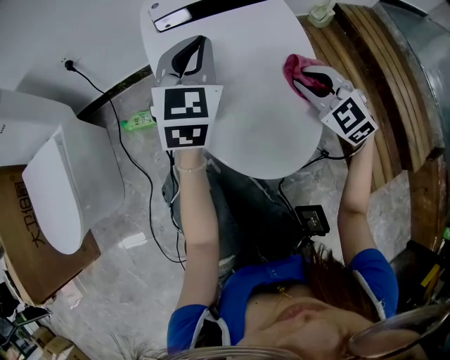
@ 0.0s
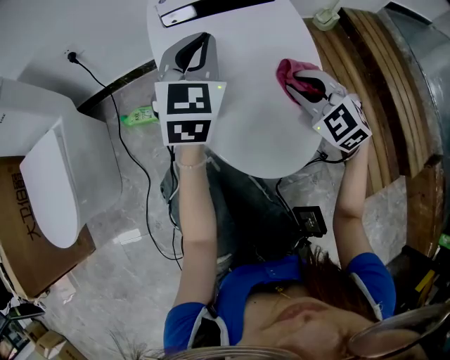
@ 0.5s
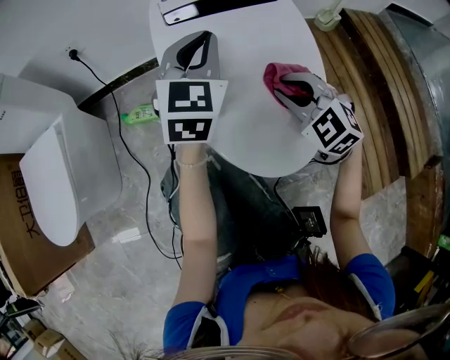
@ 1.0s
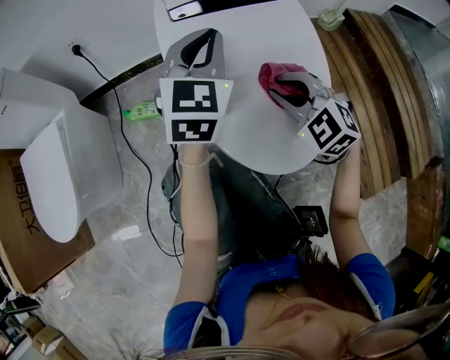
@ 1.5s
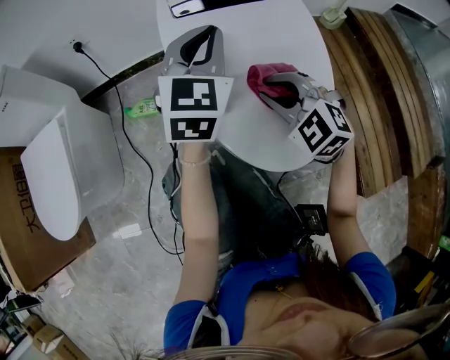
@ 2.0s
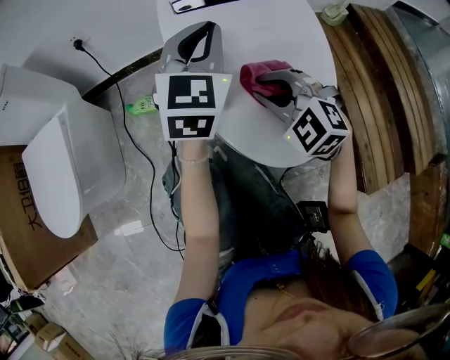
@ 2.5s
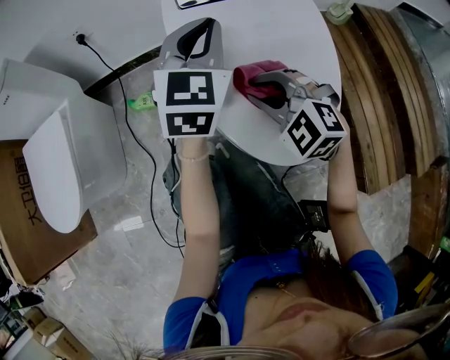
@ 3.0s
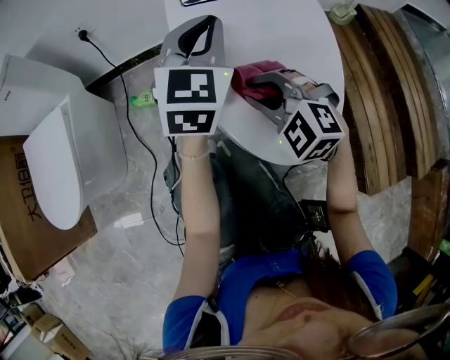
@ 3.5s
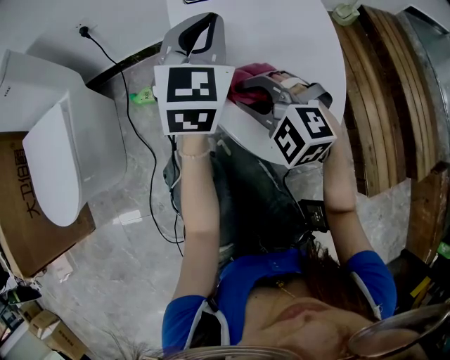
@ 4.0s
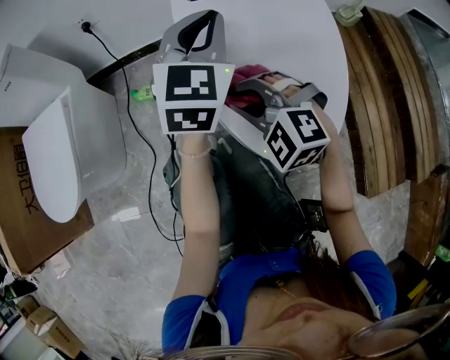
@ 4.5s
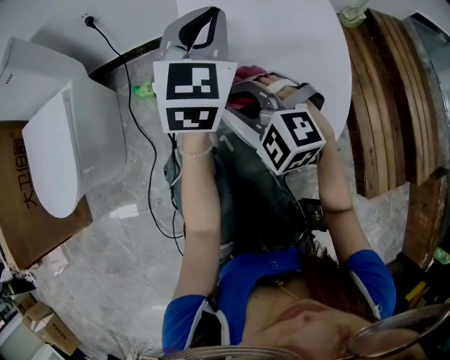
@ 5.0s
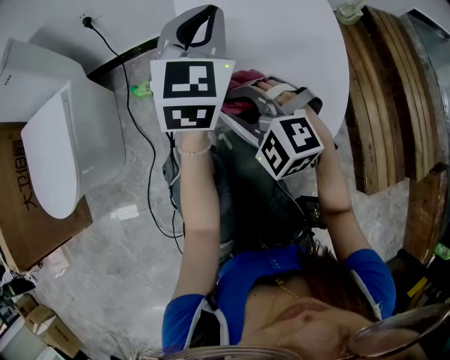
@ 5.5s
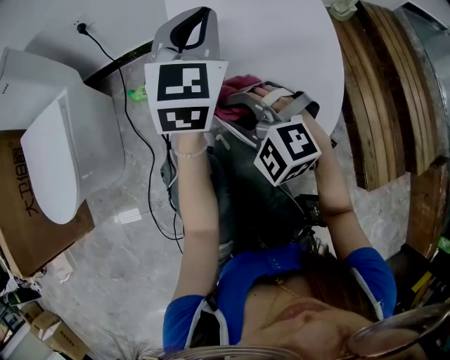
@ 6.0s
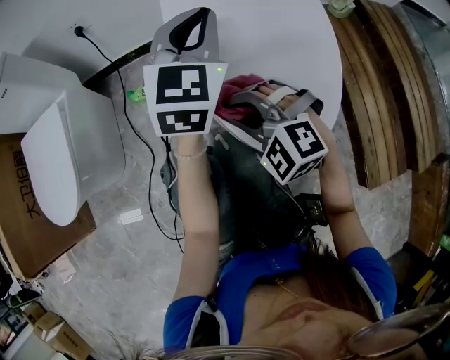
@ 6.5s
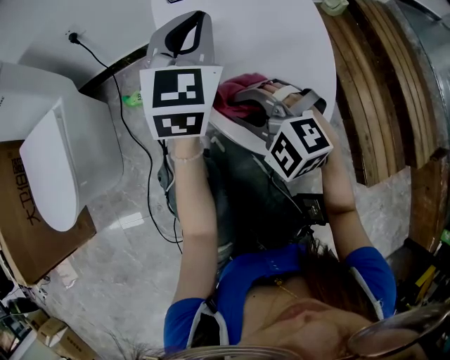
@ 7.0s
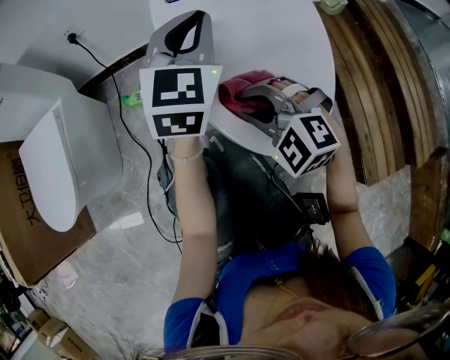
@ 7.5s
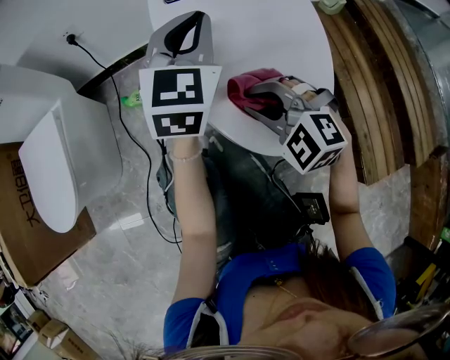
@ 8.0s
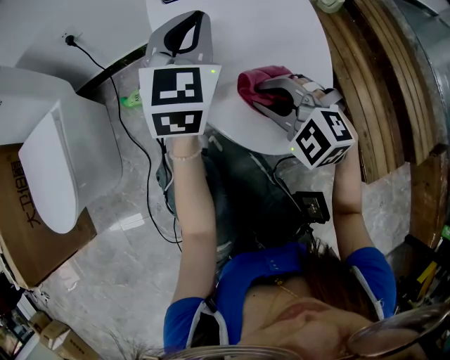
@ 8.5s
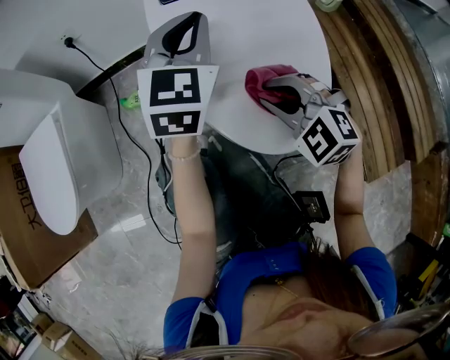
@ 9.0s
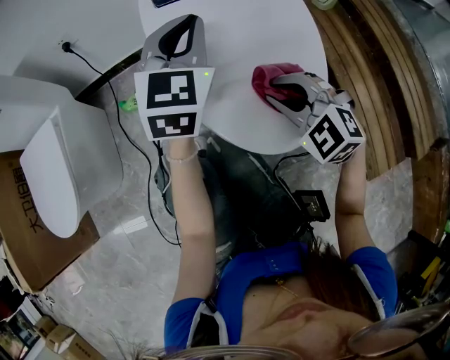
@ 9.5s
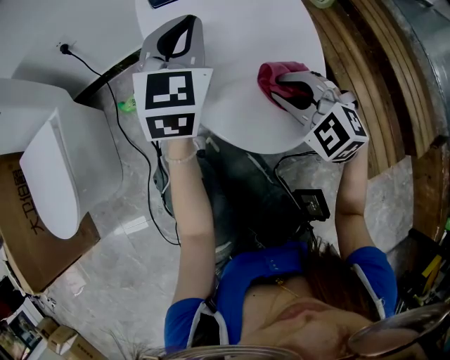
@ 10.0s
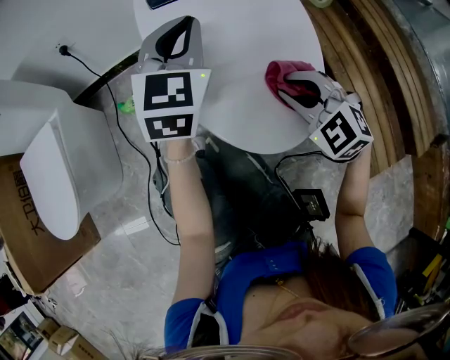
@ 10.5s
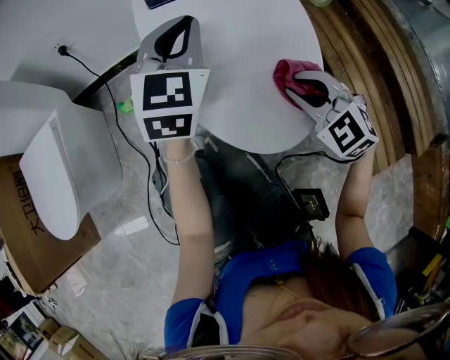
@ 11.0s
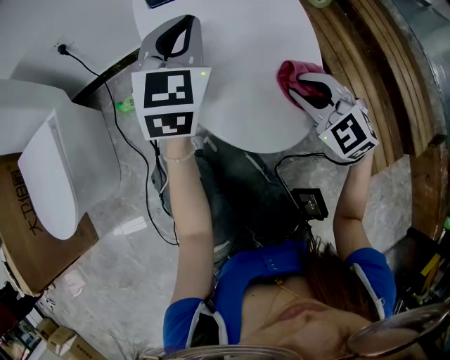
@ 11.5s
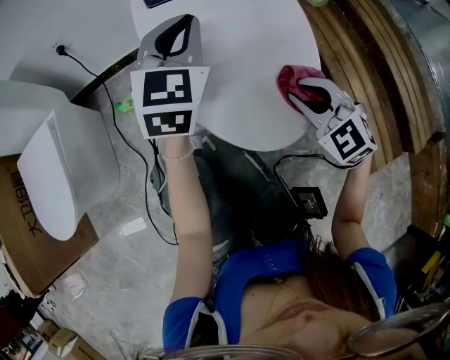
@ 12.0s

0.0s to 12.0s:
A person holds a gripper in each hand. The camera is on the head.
0.0s to 2.0s: The right gripper is displaced to the left by roughly 15 cm.
2.0s to 4.0s: The right gripper is displaced to the left by about 10 cm.
4.0s to 6.0s: The right gripper ends up about 5 cm from where it was.
6.0s to 8.0s: The right gripper heads to the right, covering roughly 10 cm.
8.0s to 10.0s: The right gripper is displaced to the right by approximately 10 cm.
10.0s to 12.0s: The right gripper moves some 5 cm.

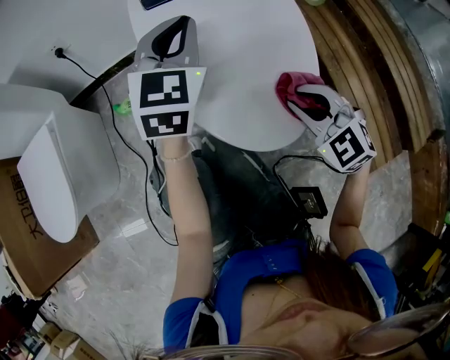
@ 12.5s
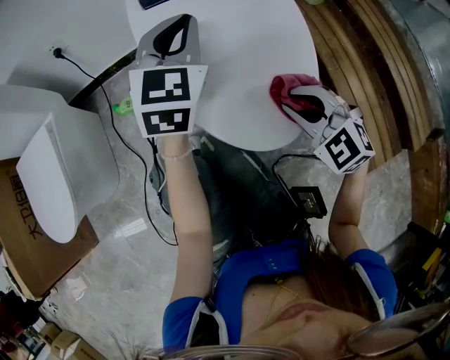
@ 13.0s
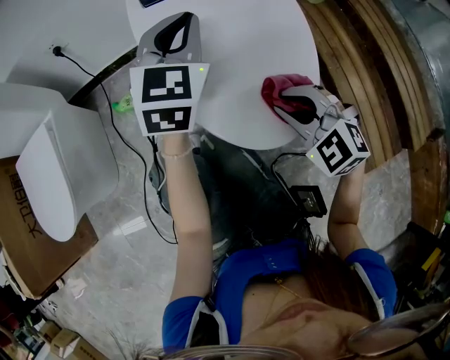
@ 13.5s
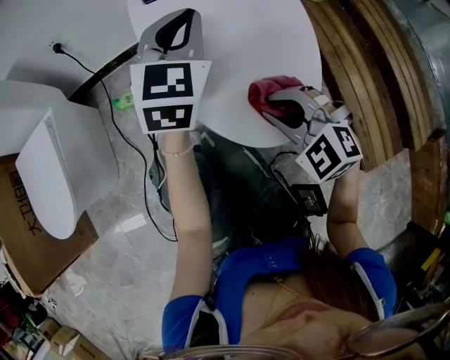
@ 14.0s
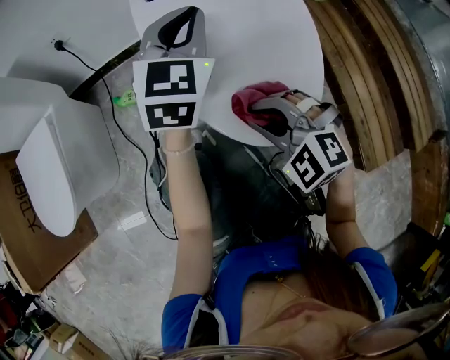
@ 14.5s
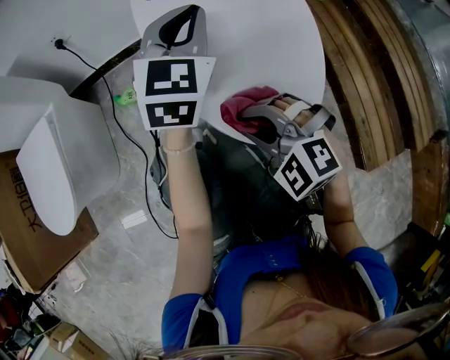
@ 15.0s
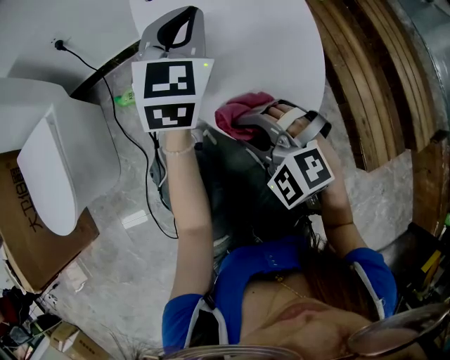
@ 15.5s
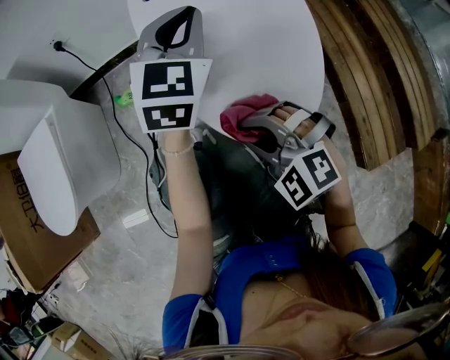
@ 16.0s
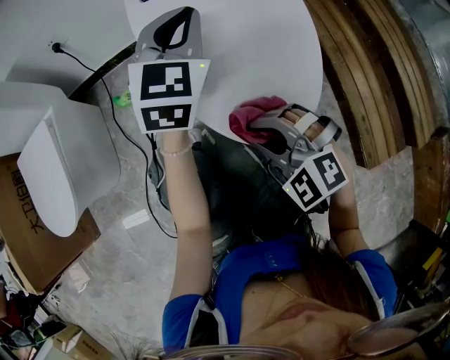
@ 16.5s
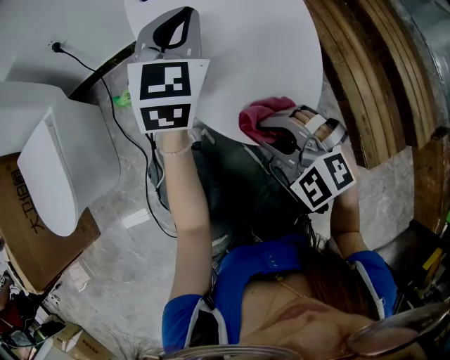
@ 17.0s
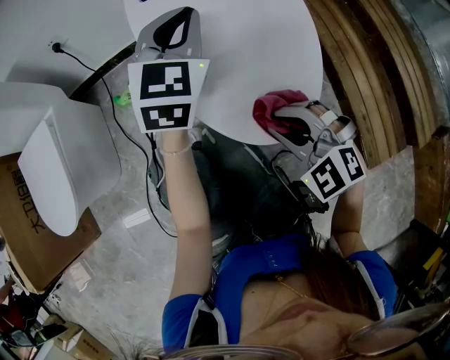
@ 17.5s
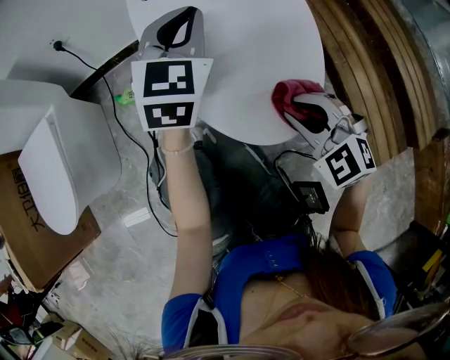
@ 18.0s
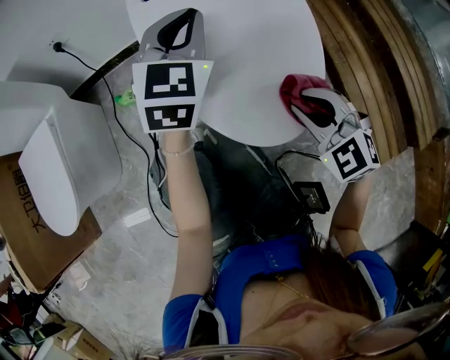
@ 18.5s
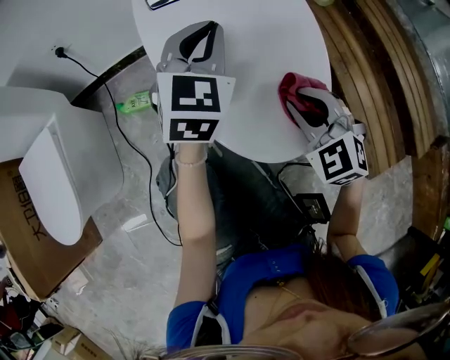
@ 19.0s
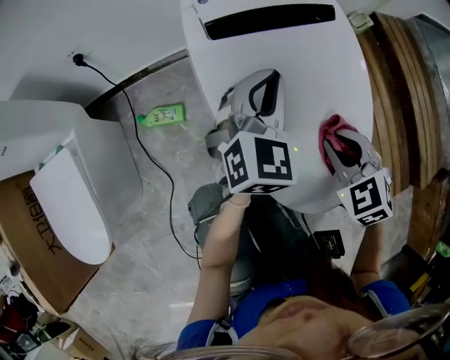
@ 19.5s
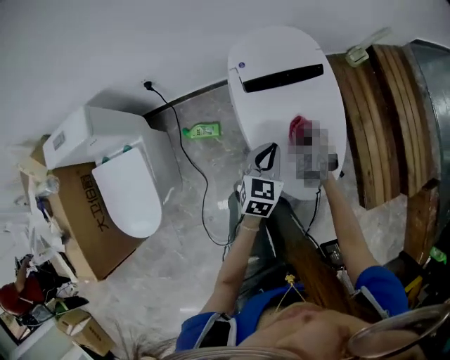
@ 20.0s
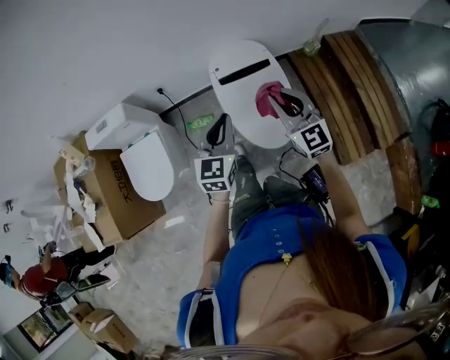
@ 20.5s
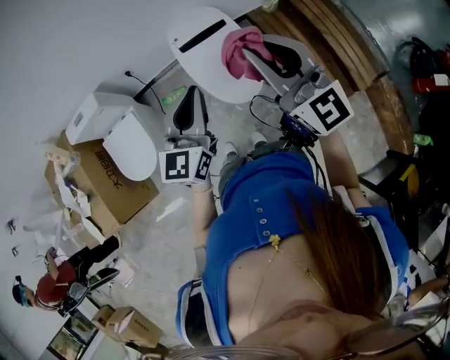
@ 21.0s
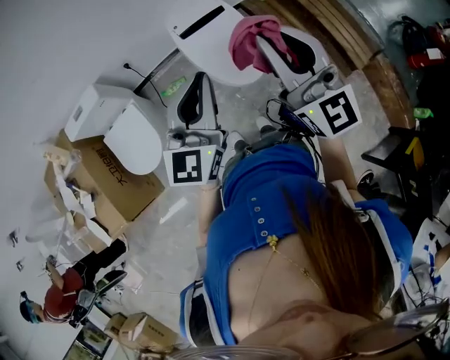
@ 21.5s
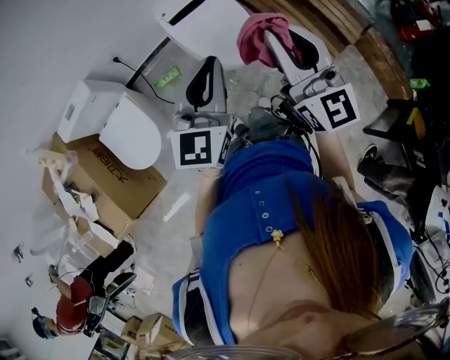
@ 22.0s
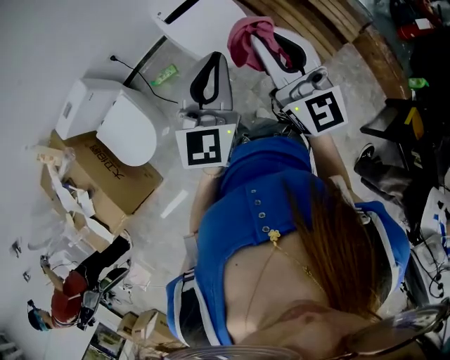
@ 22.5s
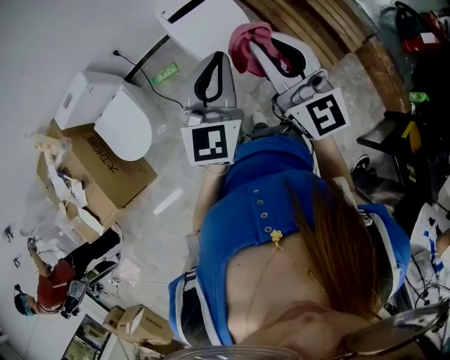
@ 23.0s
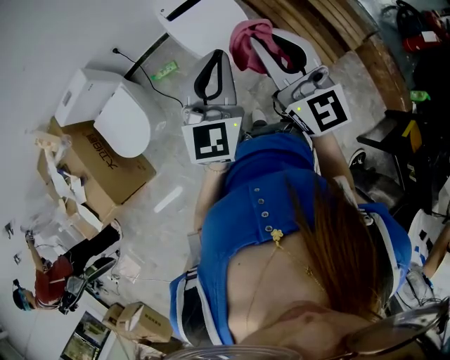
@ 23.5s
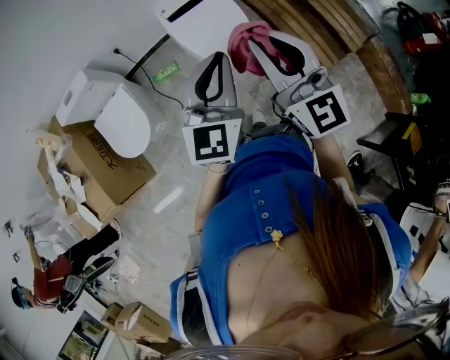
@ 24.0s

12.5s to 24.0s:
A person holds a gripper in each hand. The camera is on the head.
12.5s to 14.5s: The right gripper is displaced to the left by about 10 cm.
14.5s to 16.5s: The grippers make only small movements.
16.5s to 18.5s: The right gripper travels to the right by some 10 cm, and swivels some 20 degrees.
18.5s to 20.0s: The left gripper is displaced to the left by some 5 cm, goes forward and returns, approximately 5 cm each way, and rotates about 30 degrees. The right gripper goes roughly 20 cm forward and to the left, and turns by roughly 20 degrees.
20.0s to 22.0s: The grippers both shift upward and backward by some 70 cm. The left gripper tilts its fingers some 40 degrees upward, while the right gripper tips its fingers upward by roughly 50 degrees.
22.0s to 24.0s: The left gripper goes roughly 10 cm to the right. The right gripper shifts some 5 cm to the right.

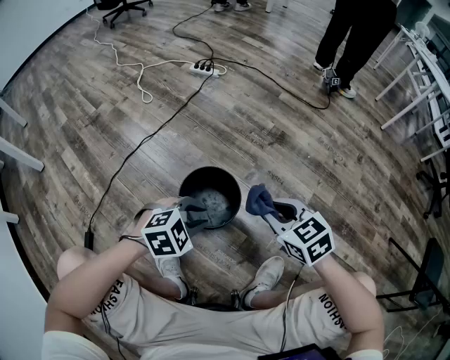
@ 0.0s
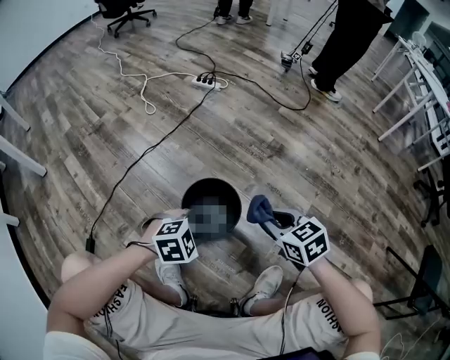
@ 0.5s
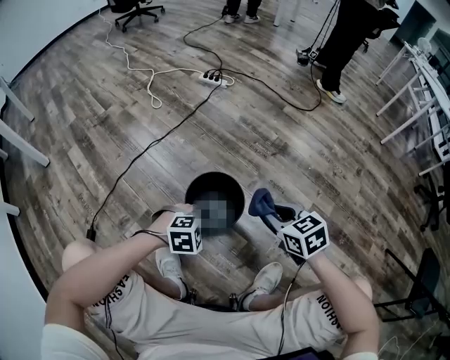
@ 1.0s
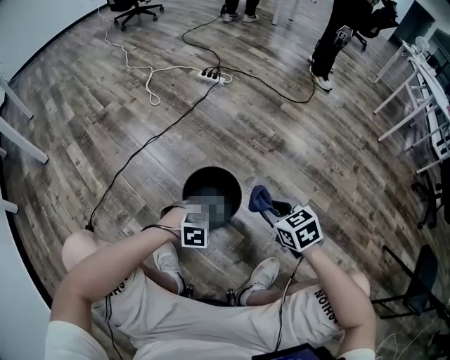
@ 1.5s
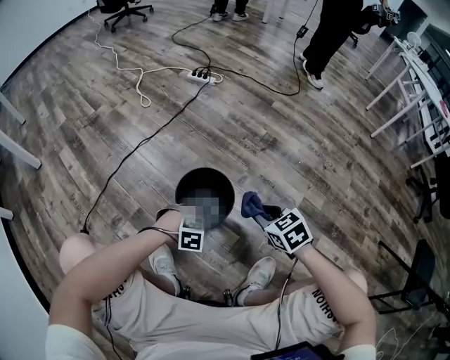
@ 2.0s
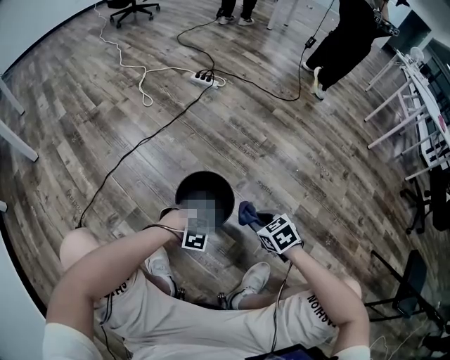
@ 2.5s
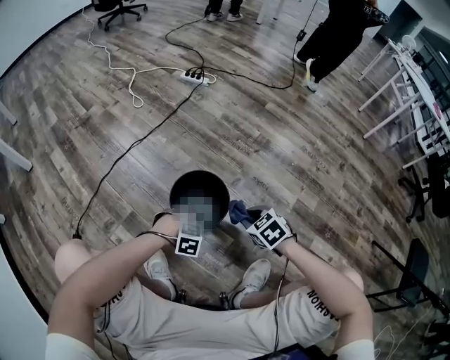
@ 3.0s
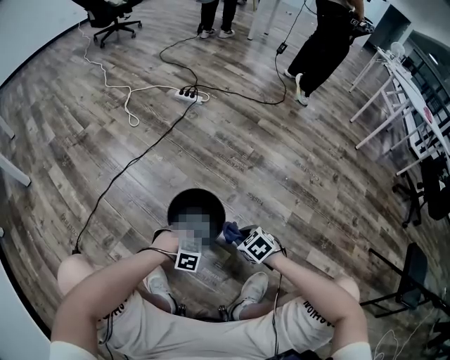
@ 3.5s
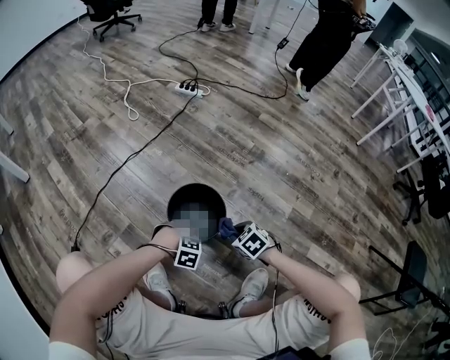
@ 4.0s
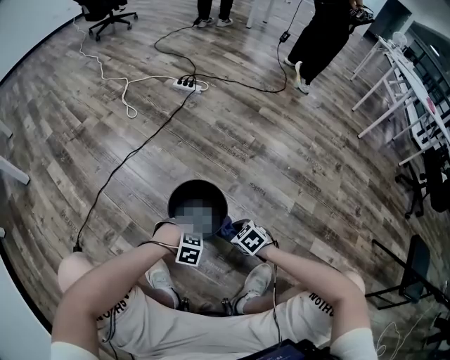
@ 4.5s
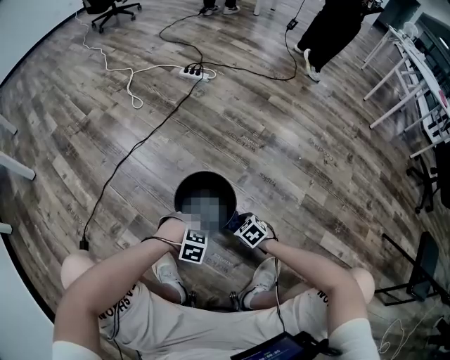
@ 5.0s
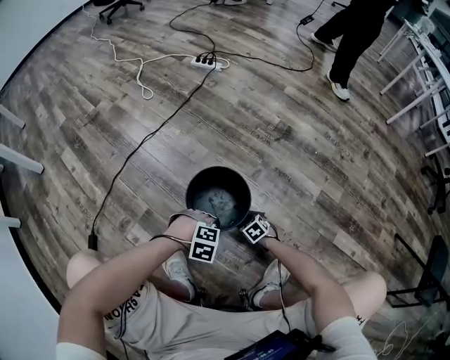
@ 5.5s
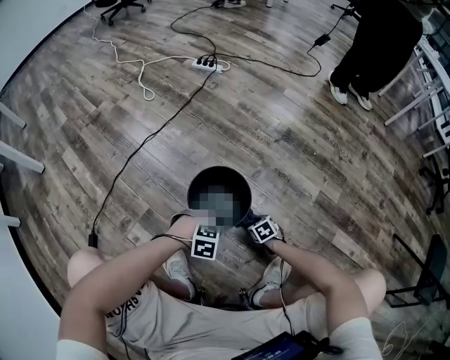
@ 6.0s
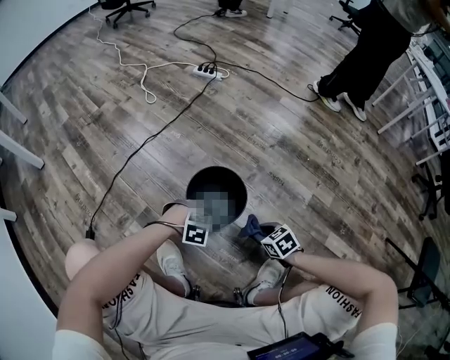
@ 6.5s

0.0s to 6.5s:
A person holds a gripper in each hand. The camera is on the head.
0.0s to 2.0s: The right gripper goes roughly 5 cm downward.
2.0s to 4.5s: The right gripper is displaced downward by roughly 15 cm.
4.5s to 6.5s: The right gripper moves some 20 cm downward and comes back.
